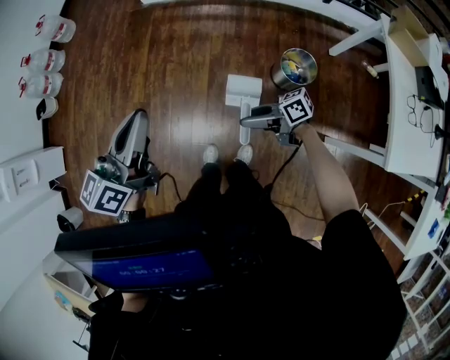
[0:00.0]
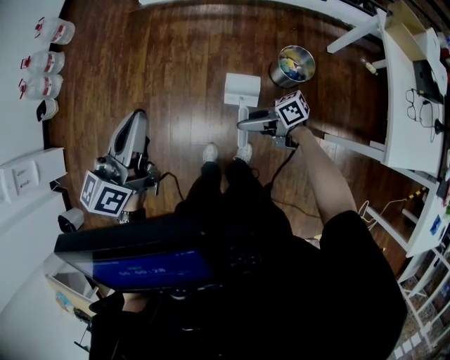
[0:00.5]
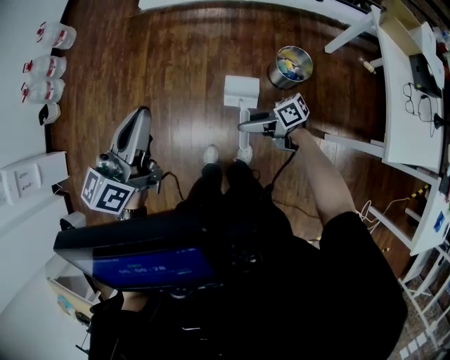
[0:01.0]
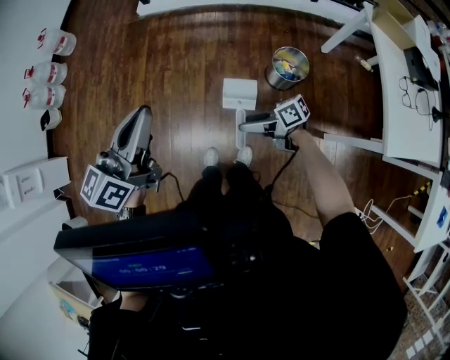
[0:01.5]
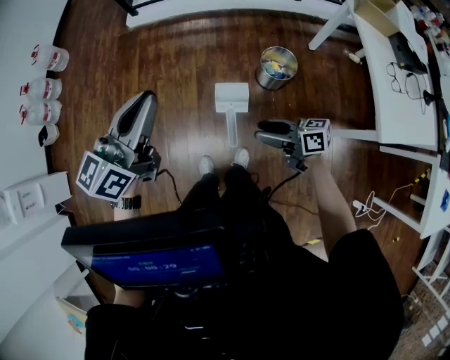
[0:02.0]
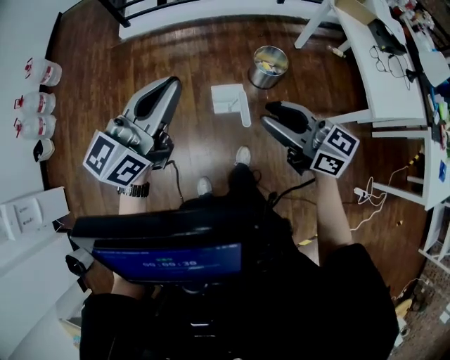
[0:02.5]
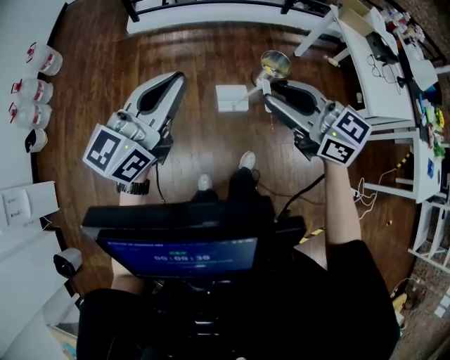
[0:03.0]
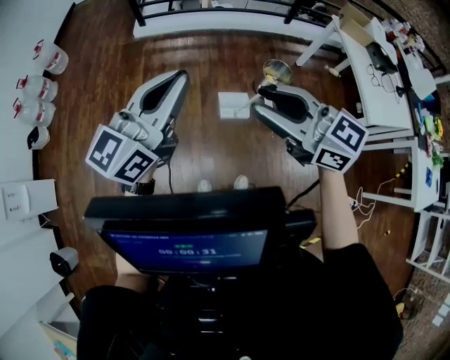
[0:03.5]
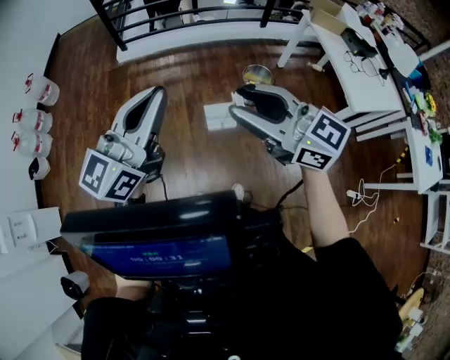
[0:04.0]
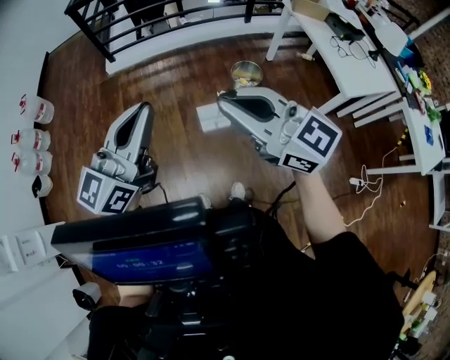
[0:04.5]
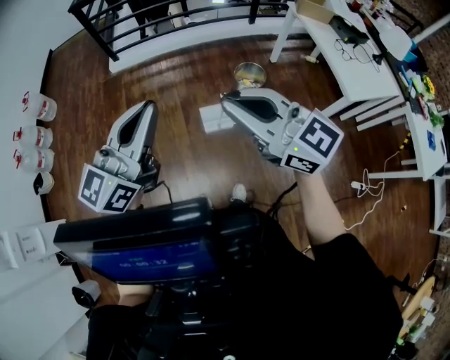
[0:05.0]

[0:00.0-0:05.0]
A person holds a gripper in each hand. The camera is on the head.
0:00.0 to 0:02.5: The right gripper shifts some 25 cm upward, and swivels roughly 60 degrees.
0:02.5 to 0:05.0: The right gripper goes some 15 cm upward, swivels some 20 degrees, and closes its fingers.

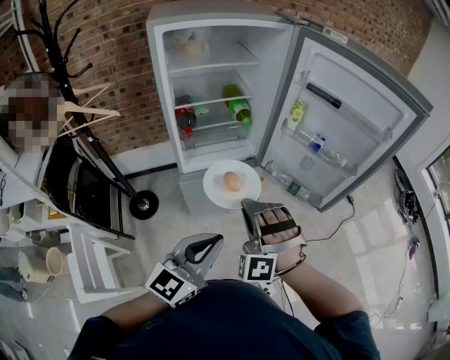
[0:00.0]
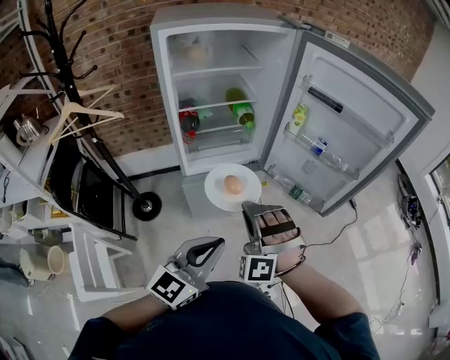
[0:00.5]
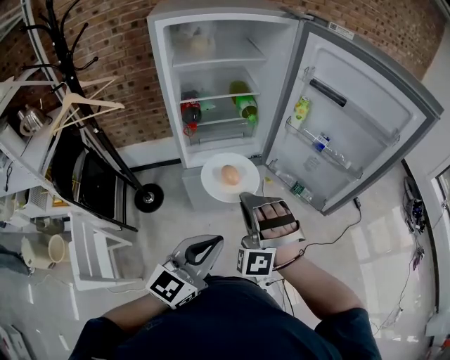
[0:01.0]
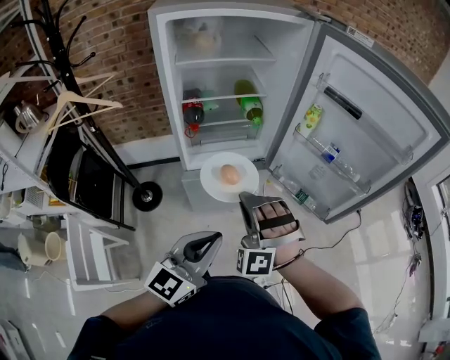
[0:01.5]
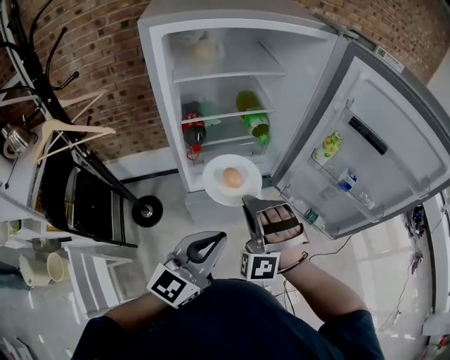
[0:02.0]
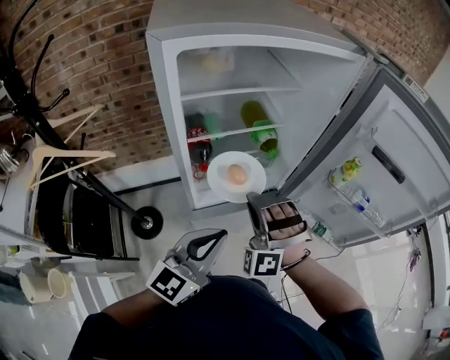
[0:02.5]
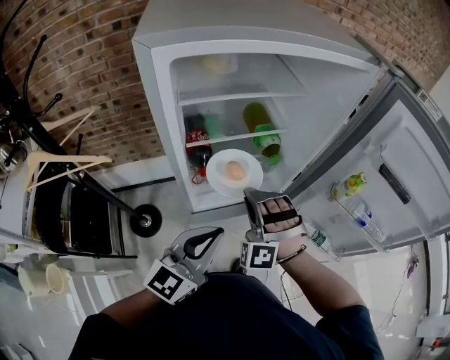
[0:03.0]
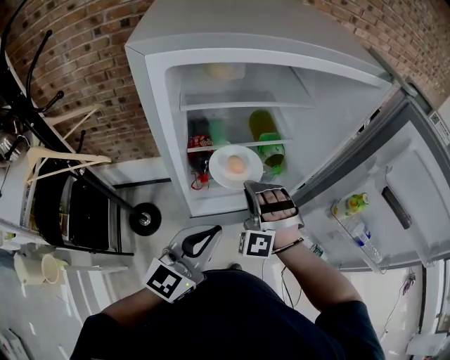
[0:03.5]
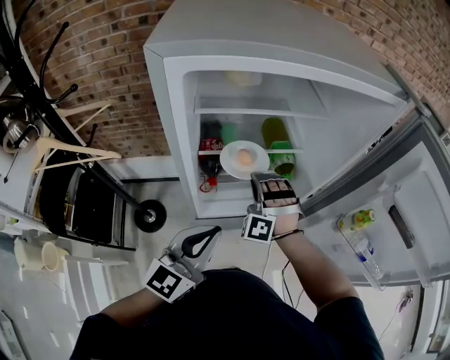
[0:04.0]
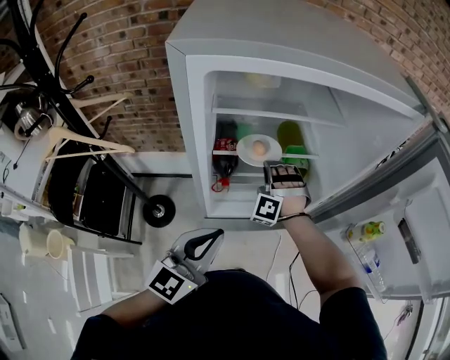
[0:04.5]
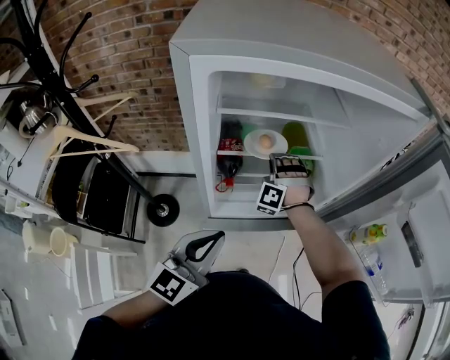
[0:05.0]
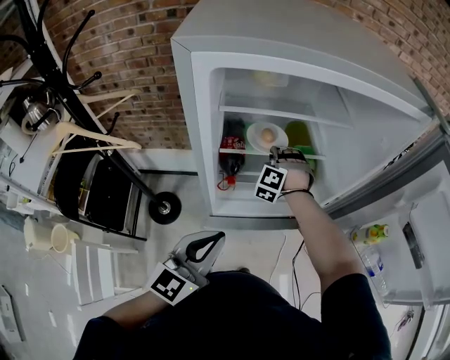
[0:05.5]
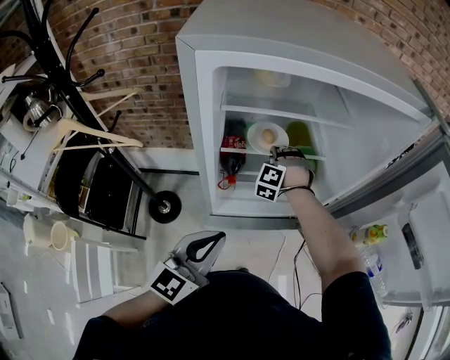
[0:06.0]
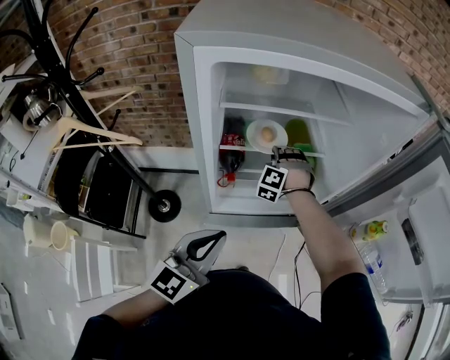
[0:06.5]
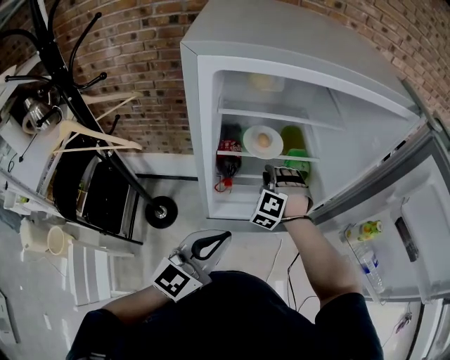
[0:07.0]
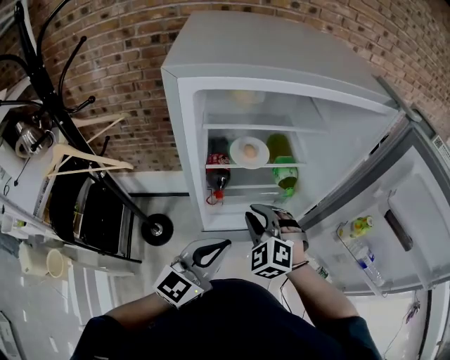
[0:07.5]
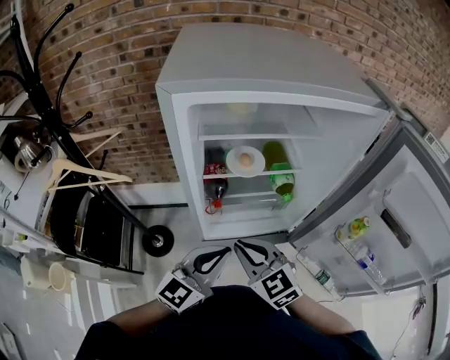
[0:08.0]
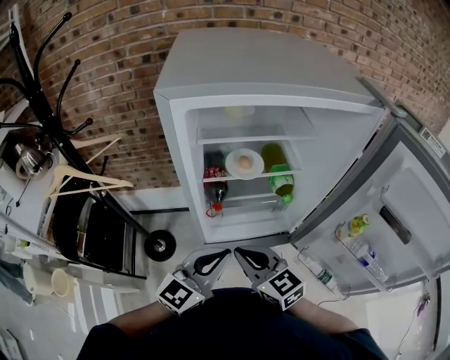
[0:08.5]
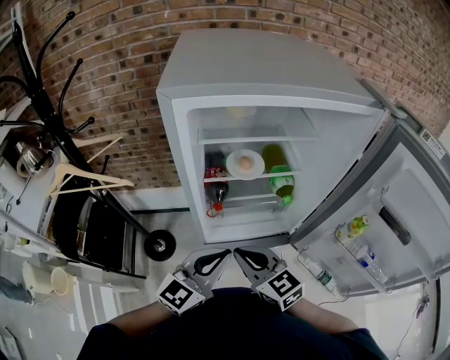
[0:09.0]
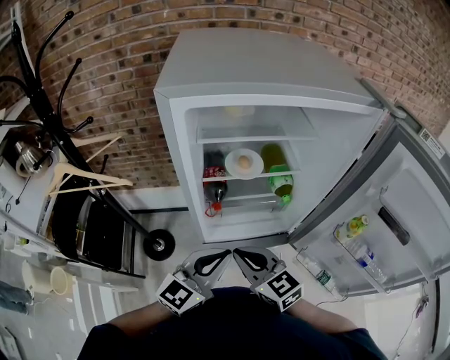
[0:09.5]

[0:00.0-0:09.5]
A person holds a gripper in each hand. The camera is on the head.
0:00.0 to 0:02.0: The left gripper ends up about 15 cm from where it was.
0:02.0 to 0:04.0: The left gripper shifts by about 20 cm.

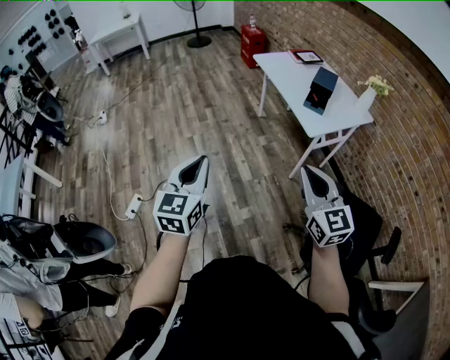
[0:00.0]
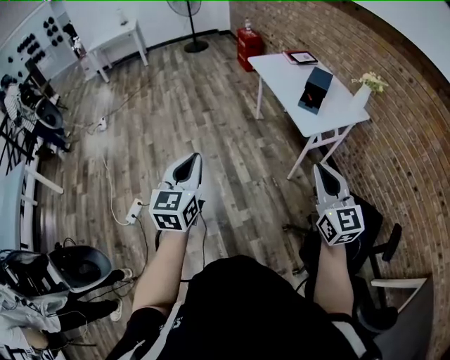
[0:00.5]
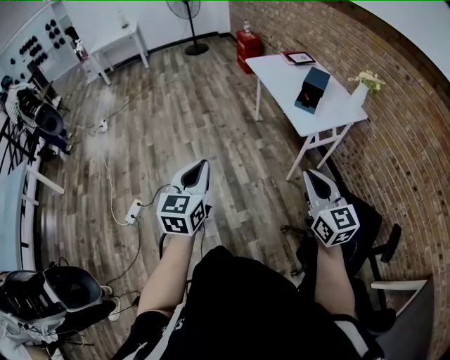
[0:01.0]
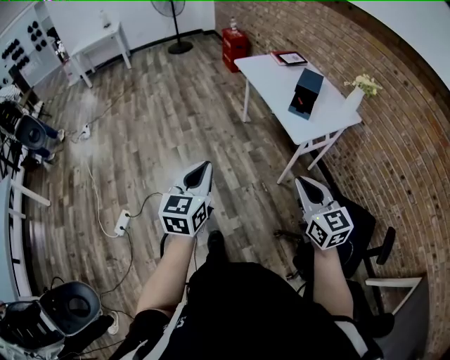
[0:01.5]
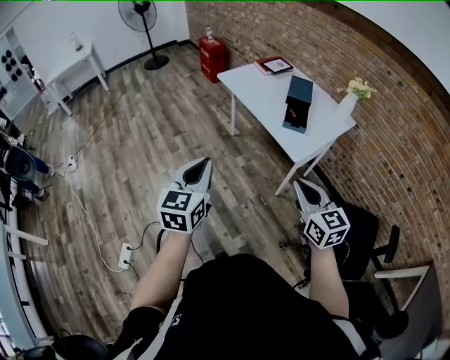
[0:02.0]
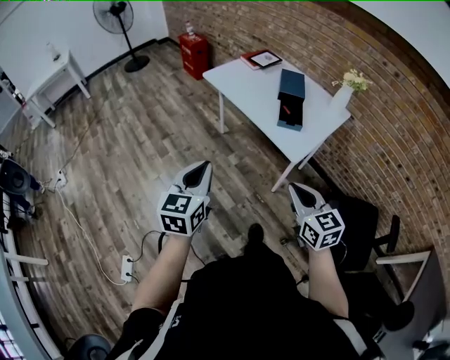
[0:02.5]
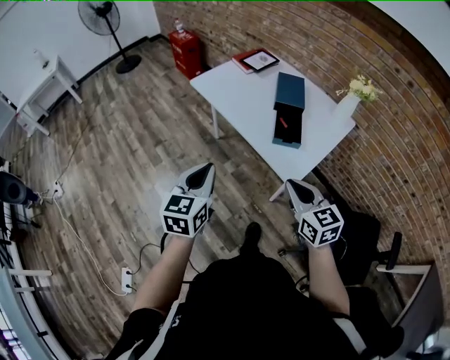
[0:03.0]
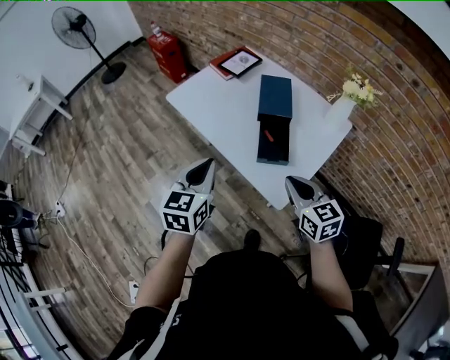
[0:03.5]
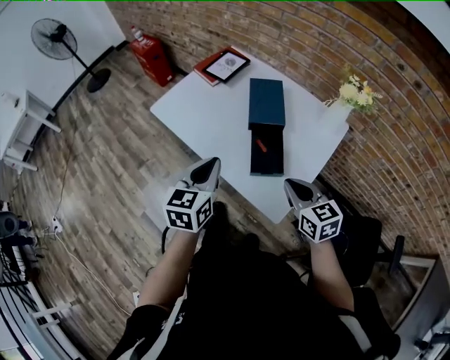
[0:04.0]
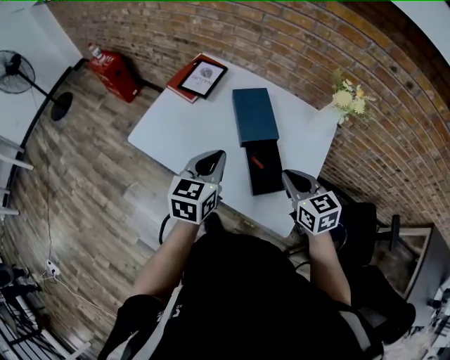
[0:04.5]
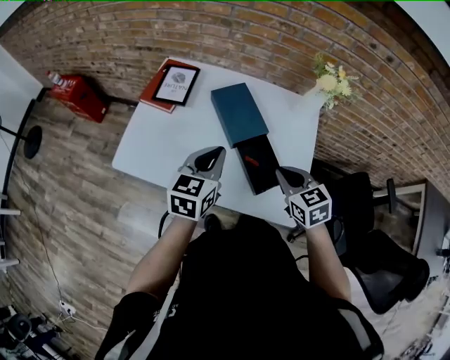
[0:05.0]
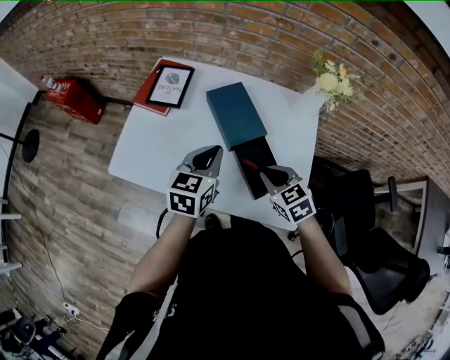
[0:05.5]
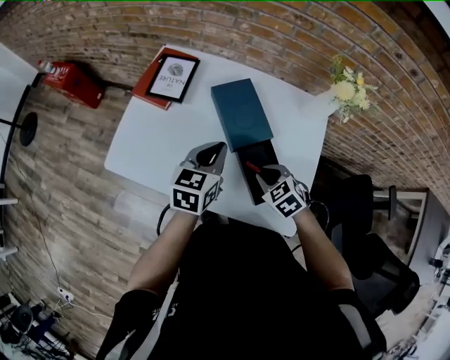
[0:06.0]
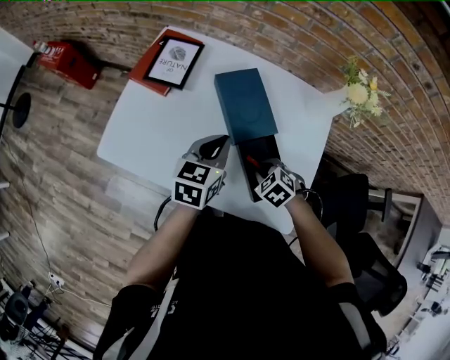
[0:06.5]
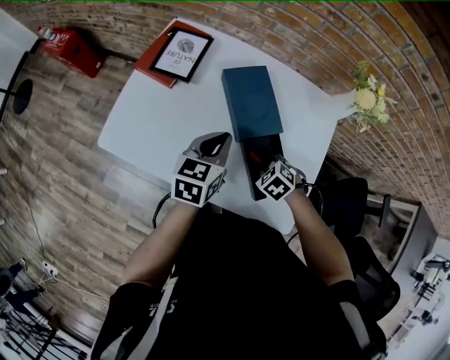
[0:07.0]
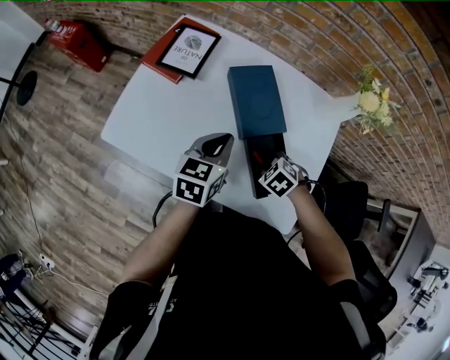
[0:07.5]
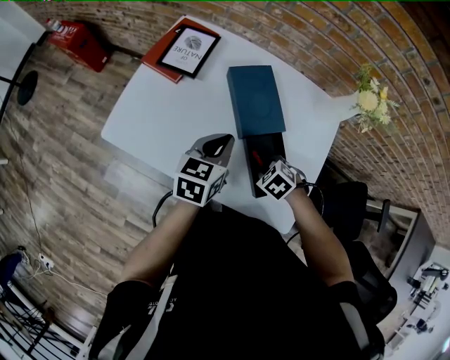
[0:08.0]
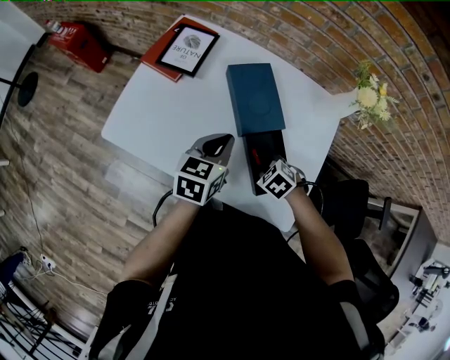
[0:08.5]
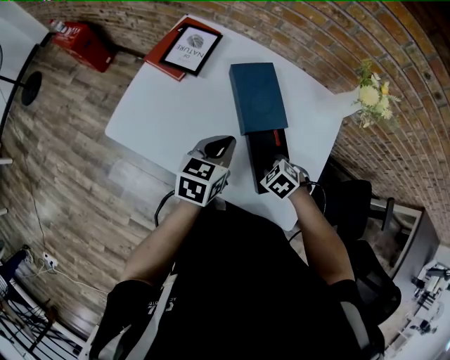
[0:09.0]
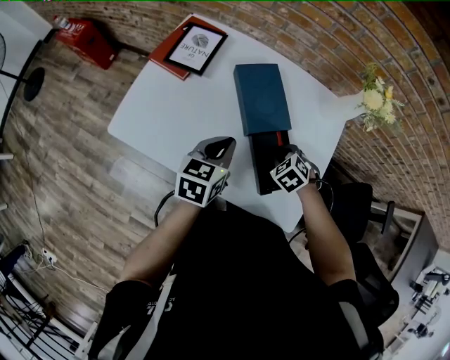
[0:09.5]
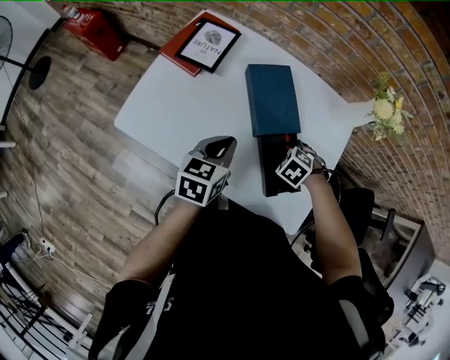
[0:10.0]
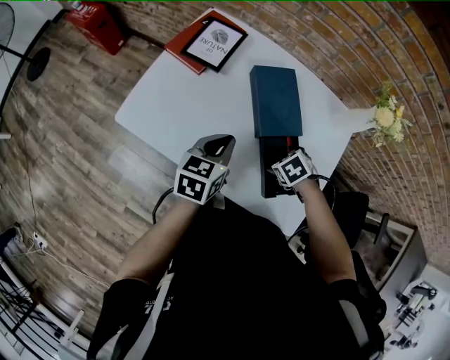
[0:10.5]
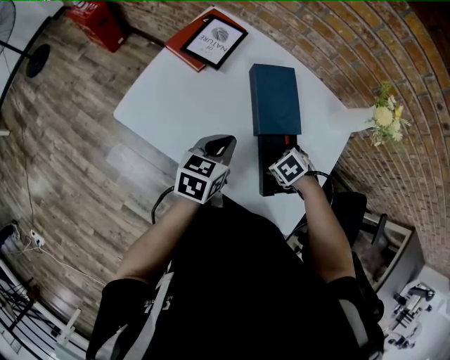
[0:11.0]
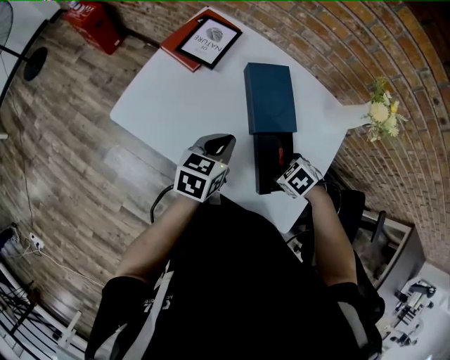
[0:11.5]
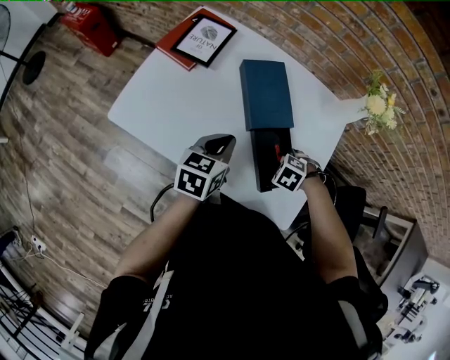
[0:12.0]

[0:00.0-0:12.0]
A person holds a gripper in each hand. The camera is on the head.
0:00.0 to 0:02.0: The two grippers go roughly 20 cm forward.
0:02.0 to 0:04.0: The pair of grippers is taken forward, approximately 40 cm. The left gripper rotates approximately 20 degrees.
0:04.0 to 0:06.0: The left gripper changes place by some 25 cm, and changes its angle by roughly 30 degrees, while the right gripper ends up roughly 25 cm from where it was, and tilts its fingers approximately 30 degrees downward.
0:06.0 to 0:08.0: The right gripper moves downward, some 5 cm, and rotates approximately 20 degrees.
0:08.0 to 0:10.0: The grippers move only a little.
0:10.0 to 0:12.0: The right gripper changes place by roughly 5 cm, and opens, then closes once more.

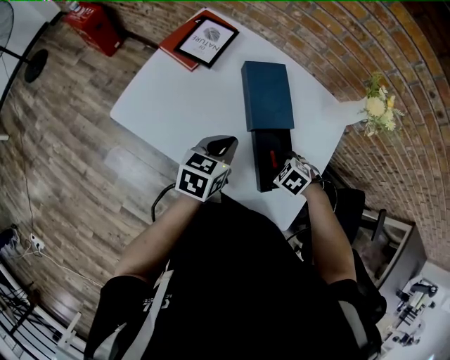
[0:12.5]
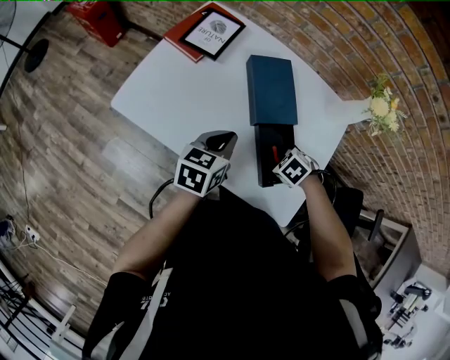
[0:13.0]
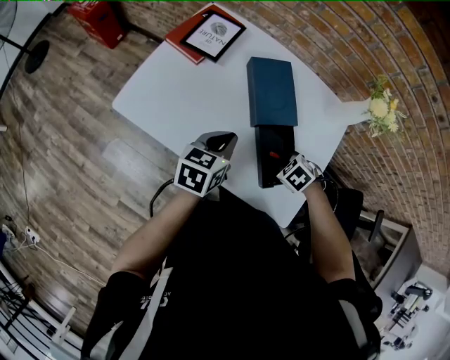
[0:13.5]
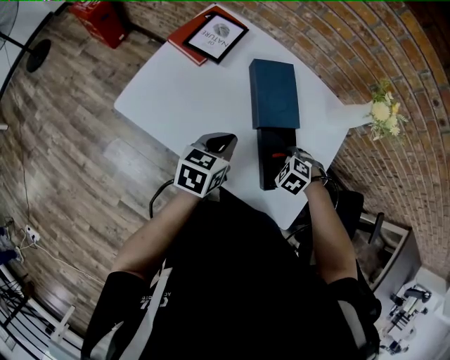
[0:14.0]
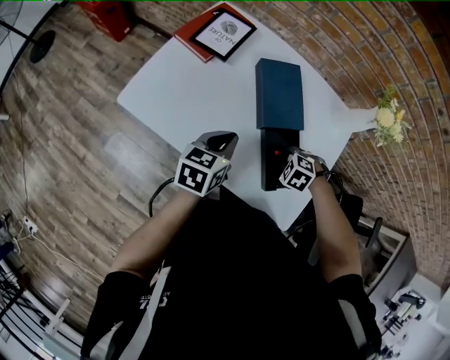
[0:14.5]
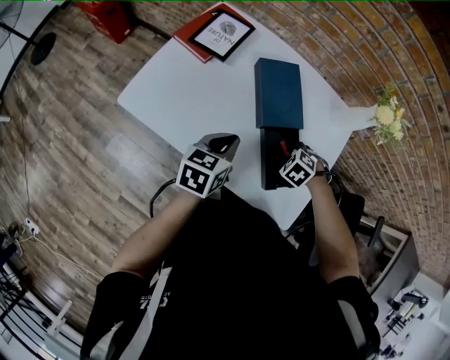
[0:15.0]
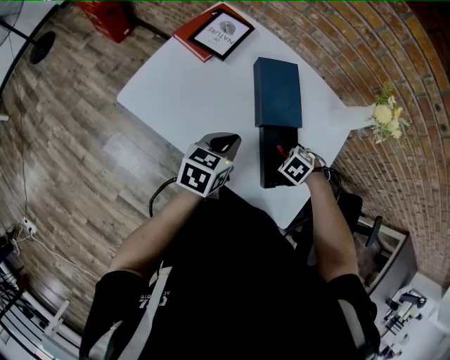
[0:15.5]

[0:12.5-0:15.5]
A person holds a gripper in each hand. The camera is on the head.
0:12.5 to 0:14.0: The grippers stay close to where they were, moving slightly.
0:14.0 to 0:15.5: There are only small adjustments of the grippers.
